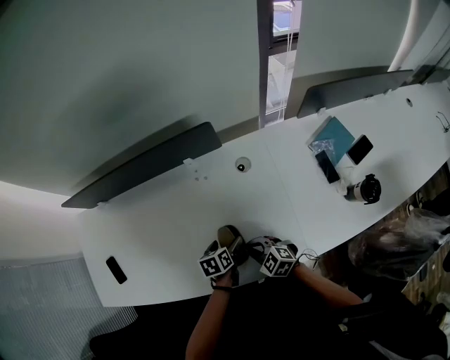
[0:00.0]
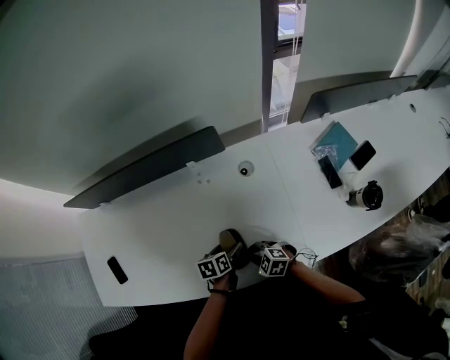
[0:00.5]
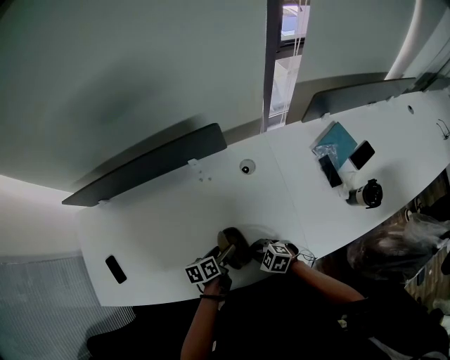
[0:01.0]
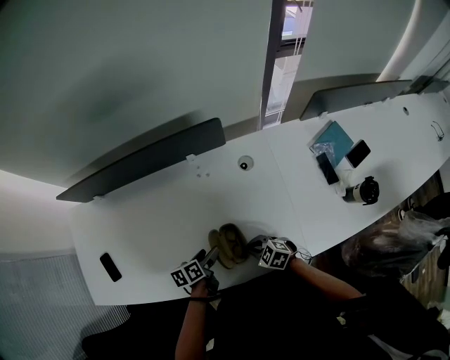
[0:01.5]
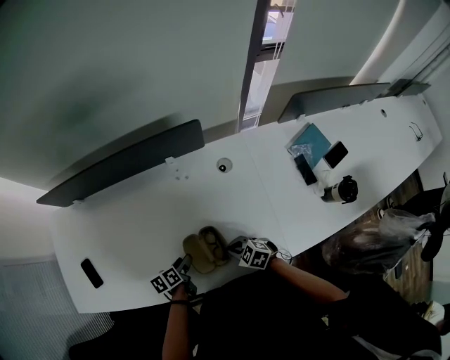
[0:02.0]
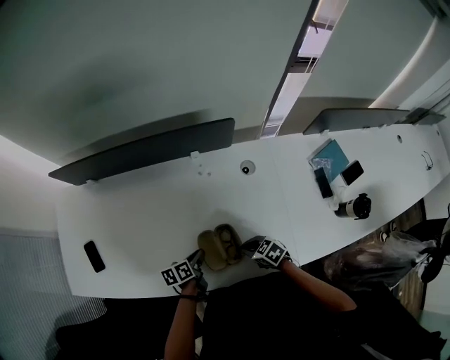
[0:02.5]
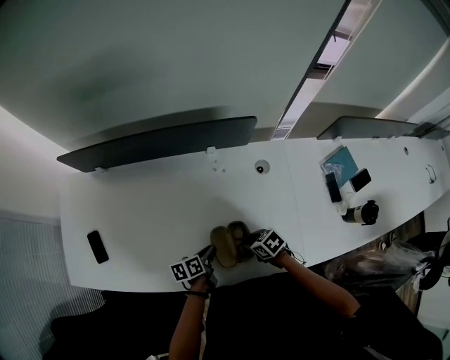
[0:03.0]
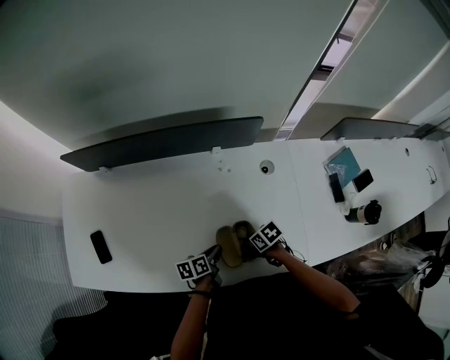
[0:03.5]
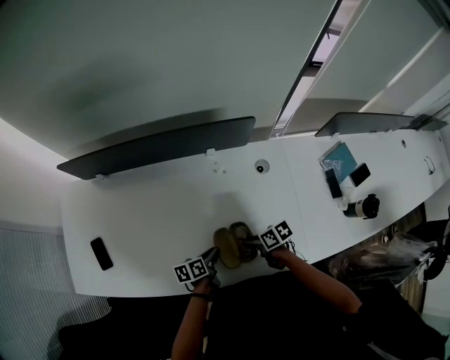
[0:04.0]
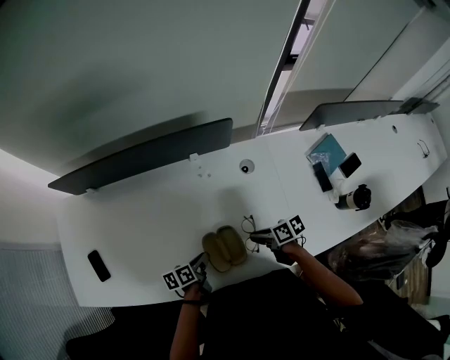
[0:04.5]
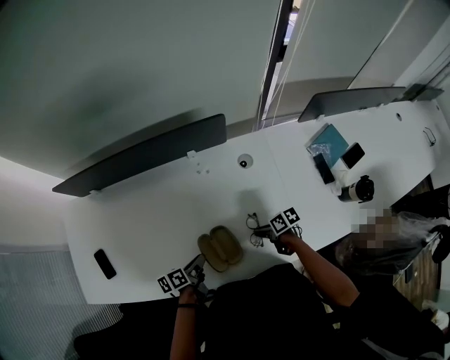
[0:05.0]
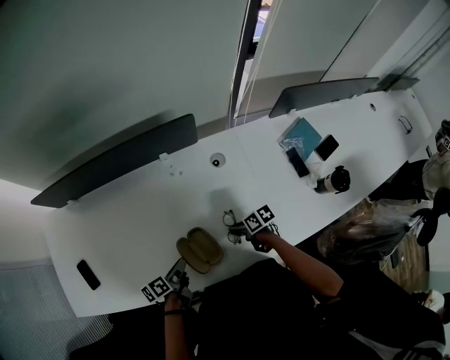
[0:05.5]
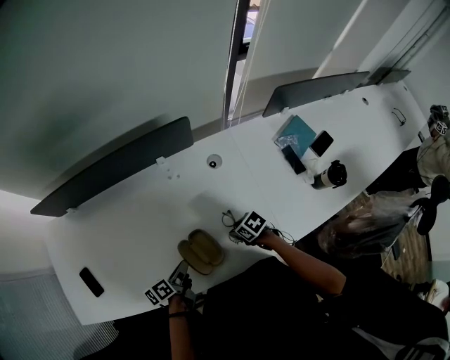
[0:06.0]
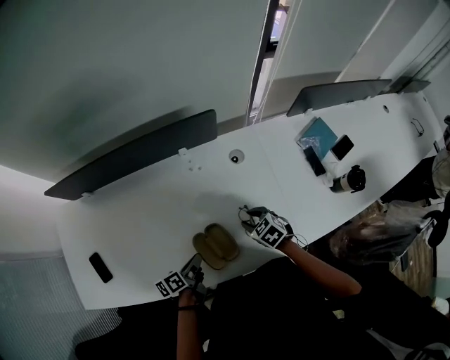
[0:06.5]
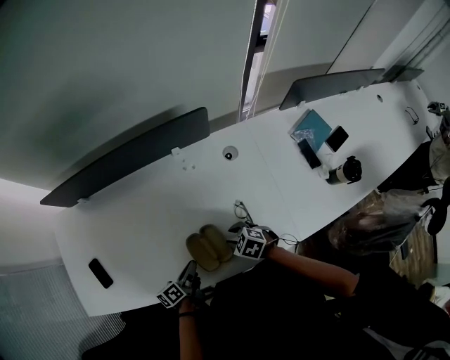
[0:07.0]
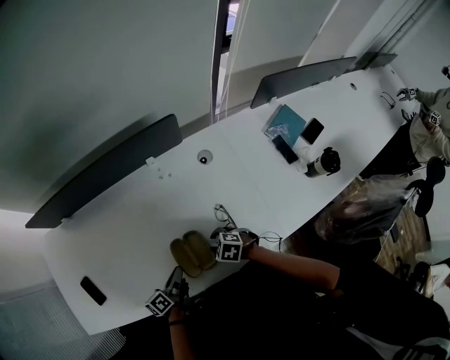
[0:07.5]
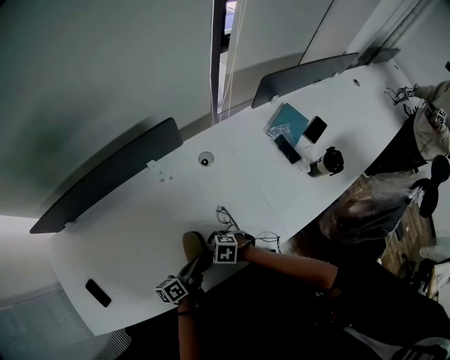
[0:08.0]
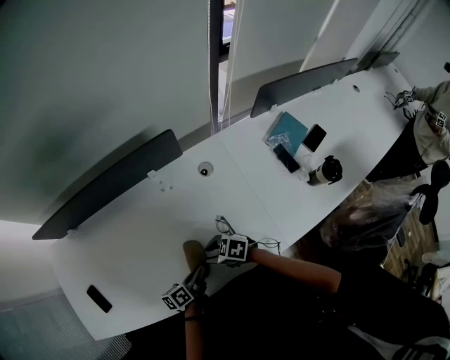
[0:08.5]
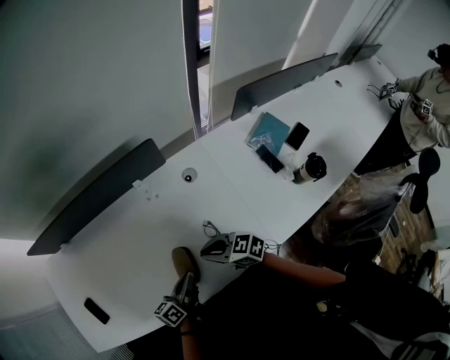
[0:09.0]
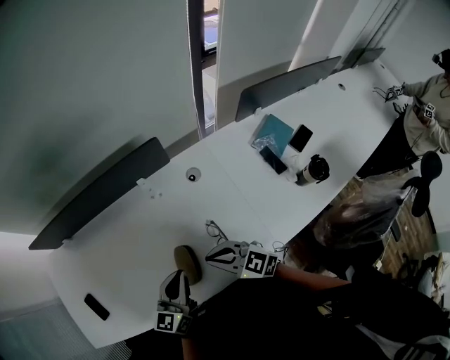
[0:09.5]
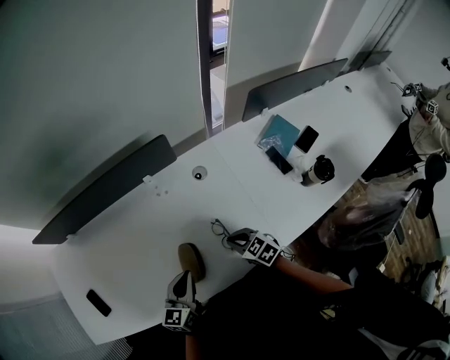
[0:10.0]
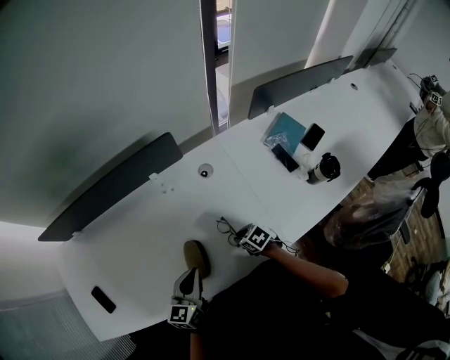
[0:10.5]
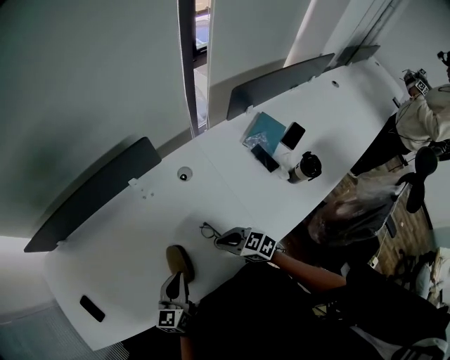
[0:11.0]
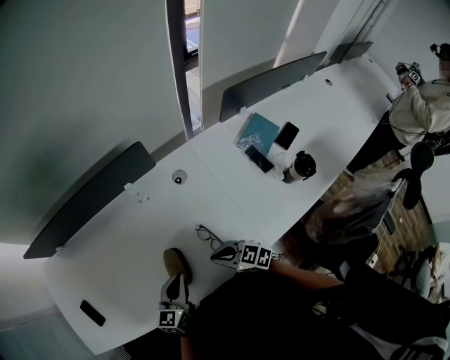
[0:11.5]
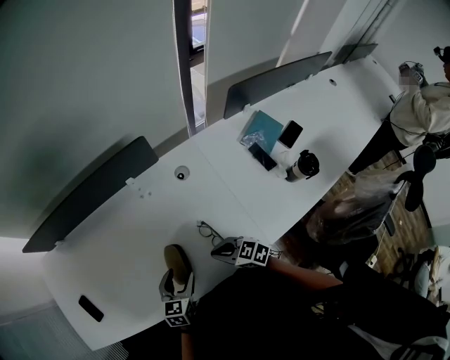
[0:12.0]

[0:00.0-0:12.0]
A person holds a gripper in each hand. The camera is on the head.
0:00.0 to 0:02.0: The left gripper ends up roughly 15 cm from where it was, and closes its fingers.
0:02.0 to 0:04.0: The right gripper moves about 5 cm, and twists roughly 50 degrees clockwise, seen from behind, while the left gripper closes.
0:04.0 to 0:06.0: The right gripper changes place by approximately 10 cm, changes its angle by roughly 20 degrees, and opens its fingers.
0:06.0 to 0:08.0: The left gripper ends up approximately 5 cm from where it was, while the right gripper moves some 15 cm, and rotates some 30 degrees.
0:08.0 to 0:10.0: The right gripper shifts by about 15 cm, swivels roughly 30 degrees, and closes. Meanwhile the left gripper shifts approximately 10 cm upward, and rolls clockwise, seen from behind, by roughly 50 degrees.
0:10.0 to 0:12.0: The right gripper goes downward and returns, some 10 cm each way. The left gripper travels downward by roughly 5 cm, rotates roughly 20 degrees, and opens up.

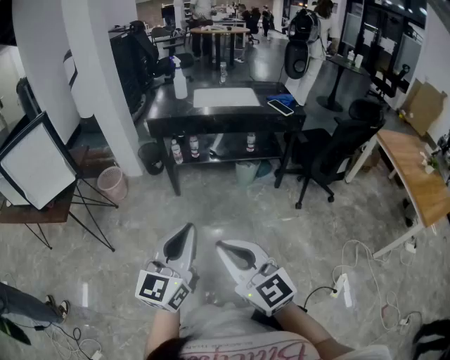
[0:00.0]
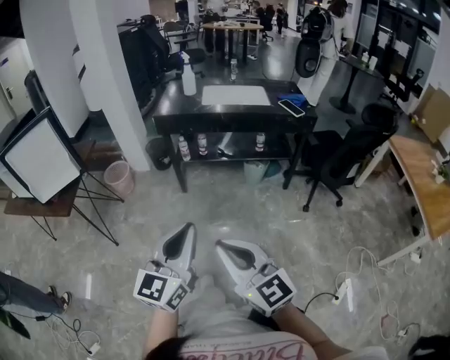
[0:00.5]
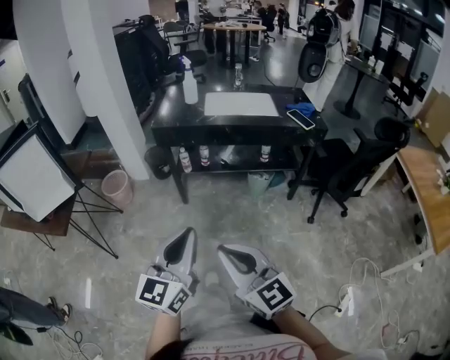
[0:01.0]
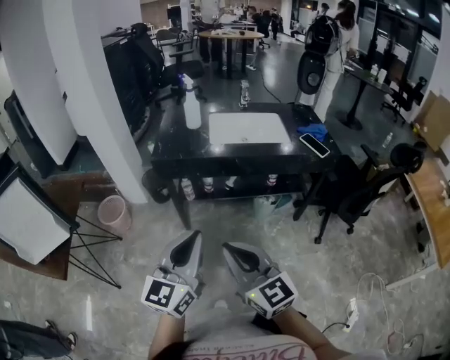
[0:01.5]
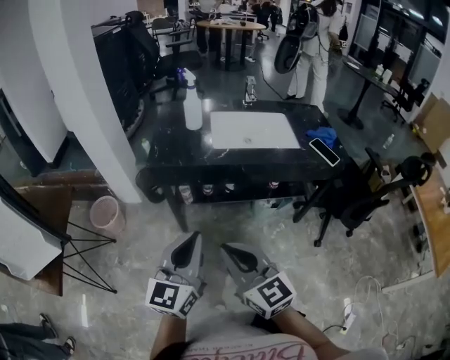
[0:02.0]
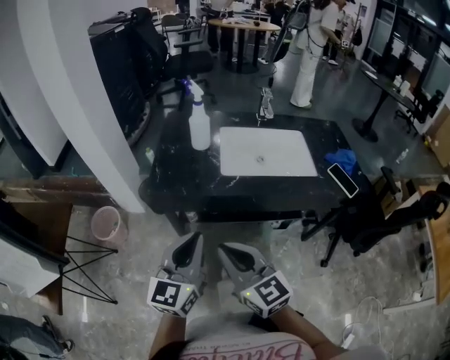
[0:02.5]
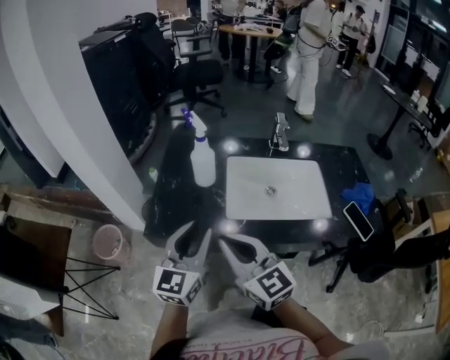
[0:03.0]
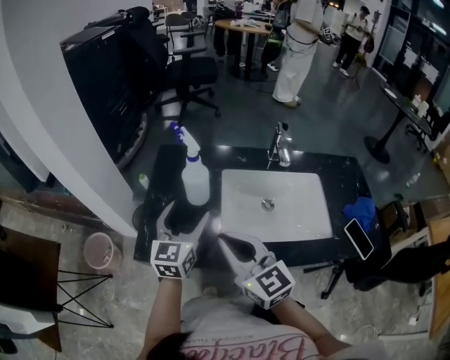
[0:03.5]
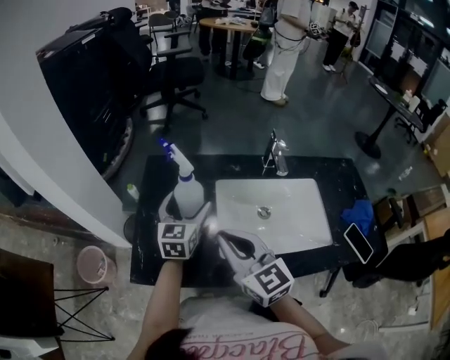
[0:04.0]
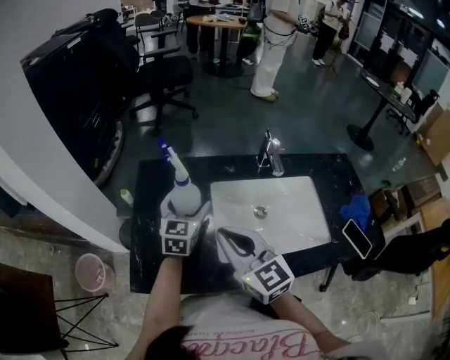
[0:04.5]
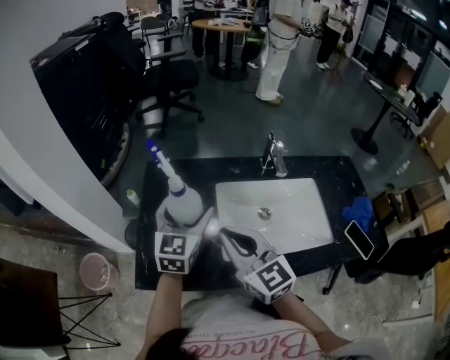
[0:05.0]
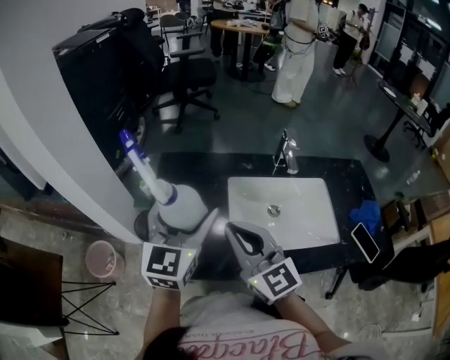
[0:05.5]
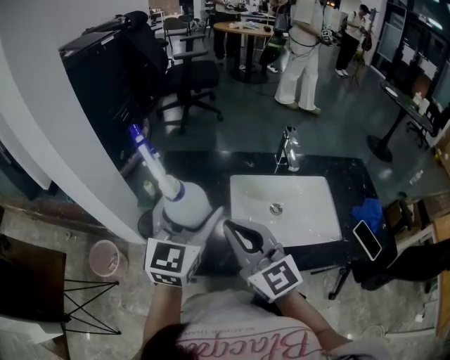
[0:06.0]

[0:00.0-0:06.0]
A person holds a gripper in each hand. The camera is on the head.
0:00.0 to 0:02.0: The two grippers go some 35 cm forward.
0:02.0 to 0:04.0: The two grippers travel together, forward, some 50 cm. The left gripper opens up.
0:04.0 to 0:06.0: The left gripper heads upward and backward, covering about 20 cm. The right gripper moves upward, roughly 5 cm.

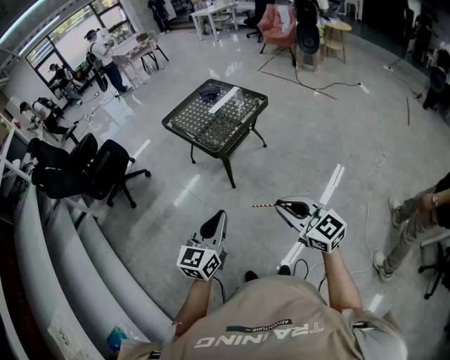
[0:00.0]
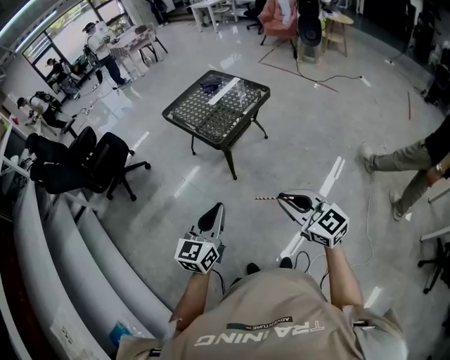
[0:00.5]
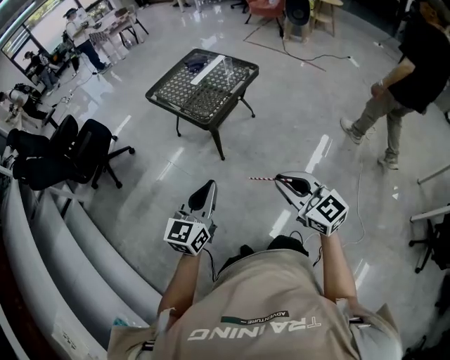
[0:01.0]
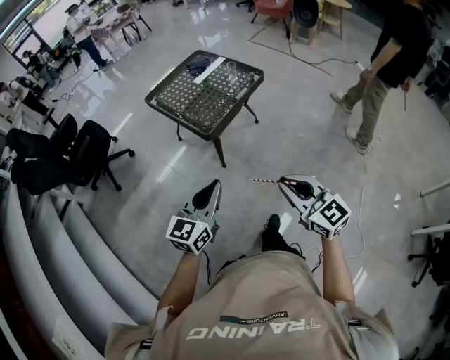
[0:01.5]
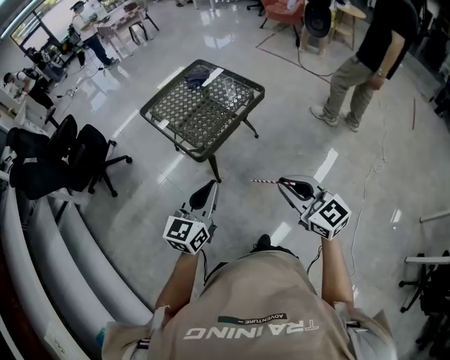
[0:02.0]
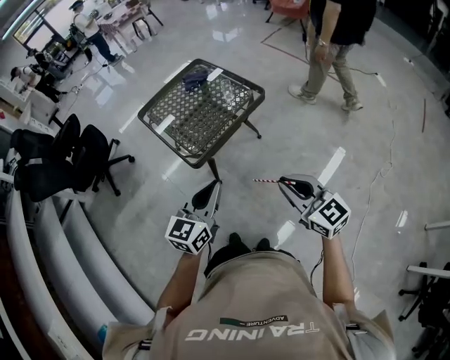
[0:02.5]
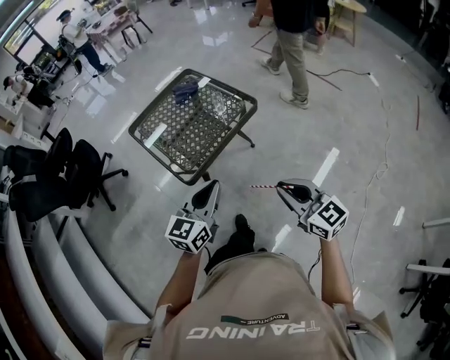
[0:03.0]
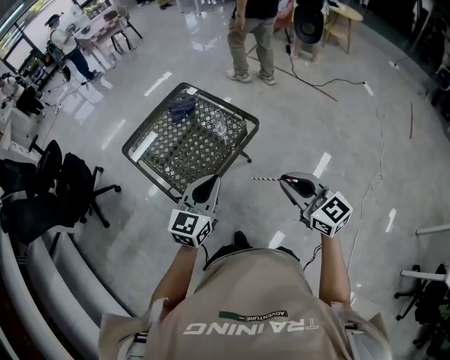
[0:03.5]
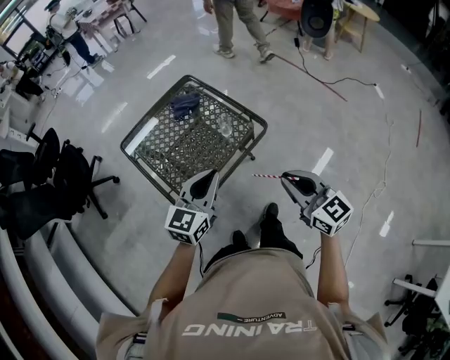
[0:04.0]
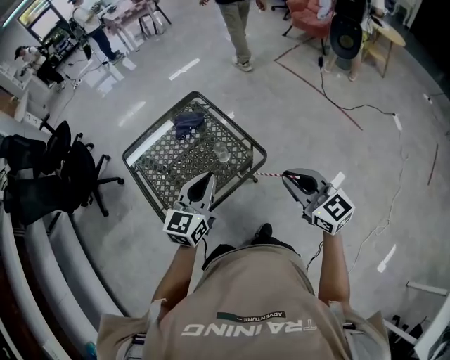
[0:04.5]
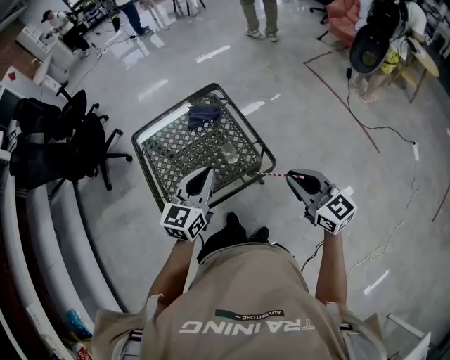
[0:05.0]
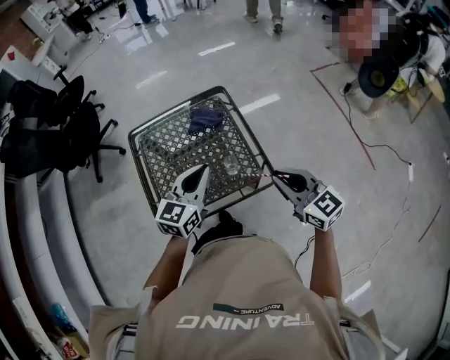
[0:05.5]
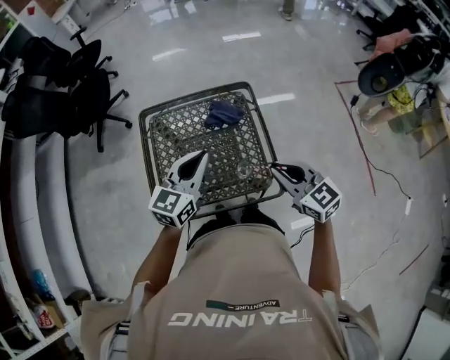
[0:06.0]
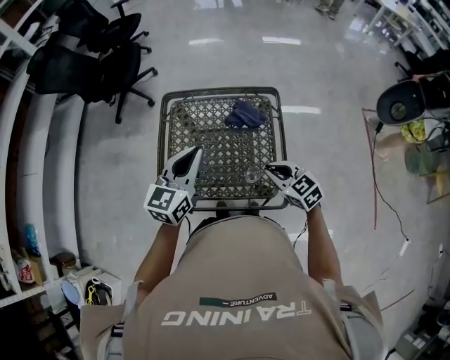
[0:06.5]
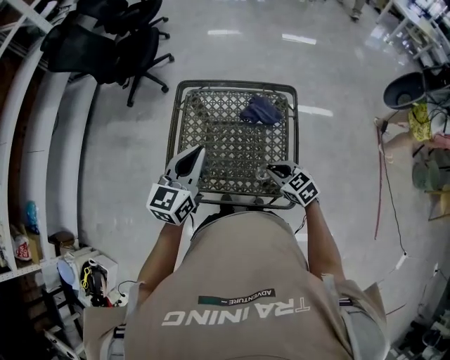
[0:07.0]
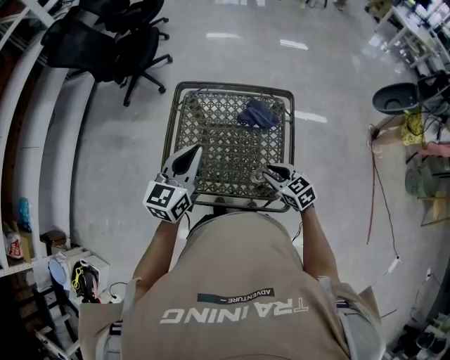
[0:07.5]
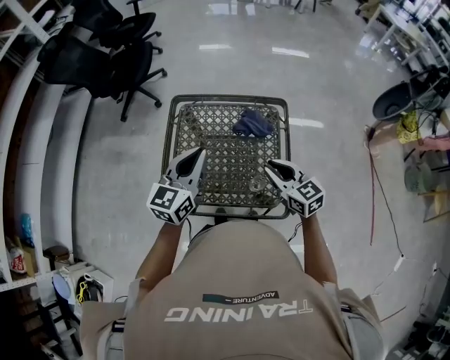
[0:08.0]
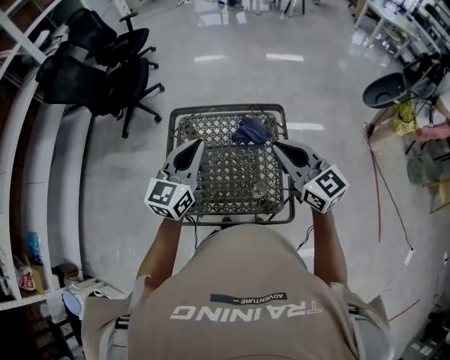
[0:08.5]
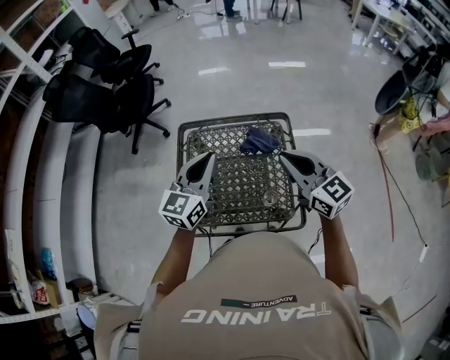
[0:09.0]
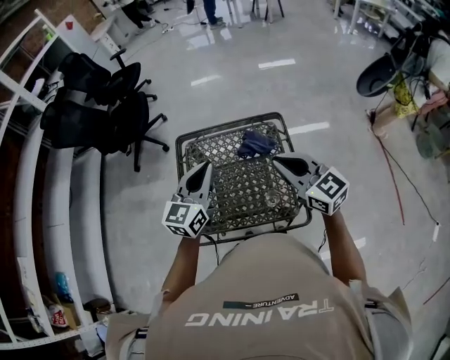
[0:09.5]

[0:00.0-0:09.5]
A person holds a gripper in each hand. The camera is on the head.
0:00.0 to 0:02.0: The left gripper travels forward by some 25 cm. Meanwhile the right gripper is displaced forward and to the right by about 25 cm.
0:02.0 to 0:04.0: Both grippers move forward, roughly 35 cm.
0:04.0 to 0:05.5: The right gripper changes place by approximately 25 cm, and swivels some 30 degrees. The left gripper shifts by roughly 20 cm, and swivels about 20 degrees.
0:05.5 to 0:07.5: The left gripper changes place by about 15 cm, and rotates some 30 degrees, while the right gripper travels downward by approximately 20 cm, and rotates some 40 degrees.
0:07.5 to 0:09.5: The right gripper shifts about 25 cm upward, tips its fingers upward by some 30 degrees, and closes its fingers, while the left gripper ends up approximately 5 cm from where it was.
